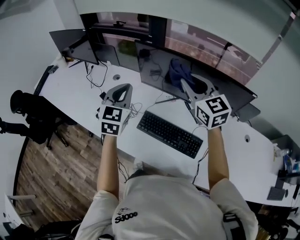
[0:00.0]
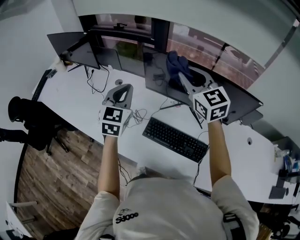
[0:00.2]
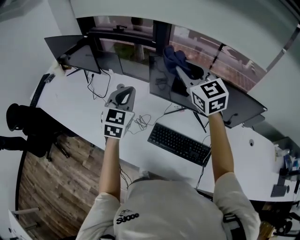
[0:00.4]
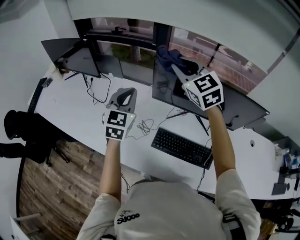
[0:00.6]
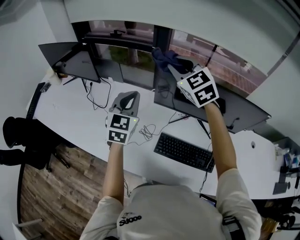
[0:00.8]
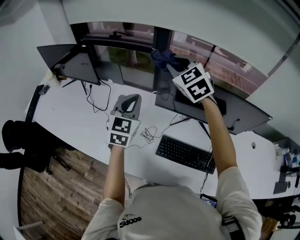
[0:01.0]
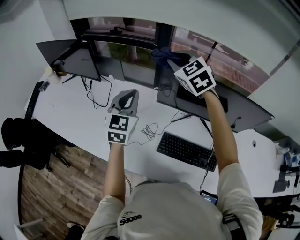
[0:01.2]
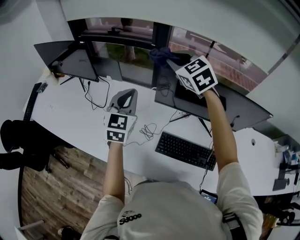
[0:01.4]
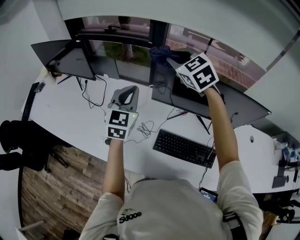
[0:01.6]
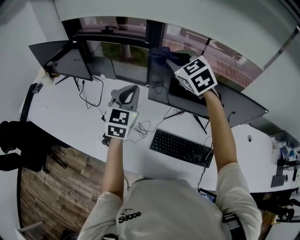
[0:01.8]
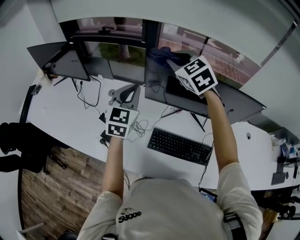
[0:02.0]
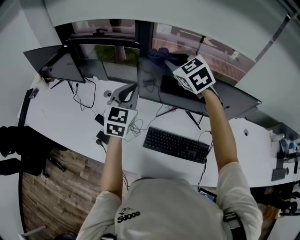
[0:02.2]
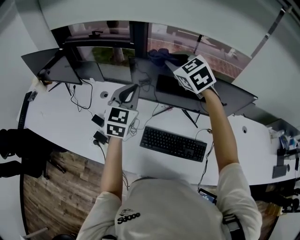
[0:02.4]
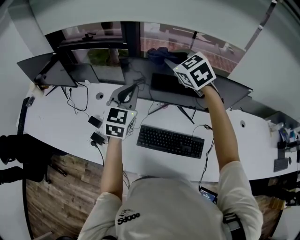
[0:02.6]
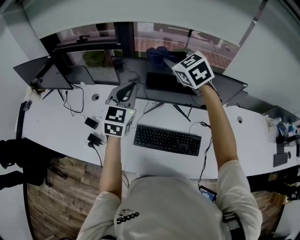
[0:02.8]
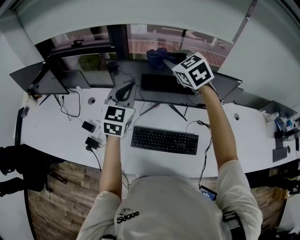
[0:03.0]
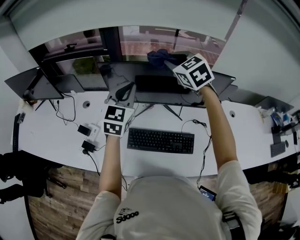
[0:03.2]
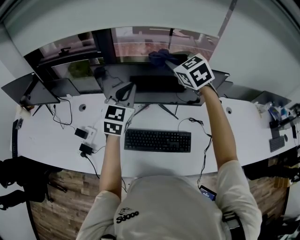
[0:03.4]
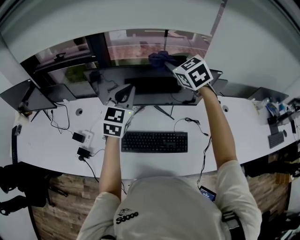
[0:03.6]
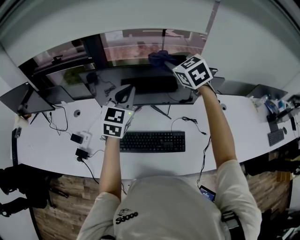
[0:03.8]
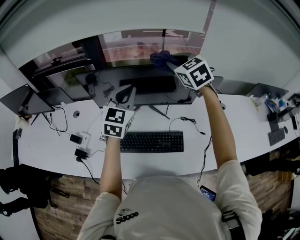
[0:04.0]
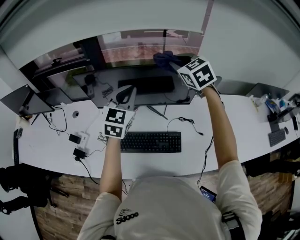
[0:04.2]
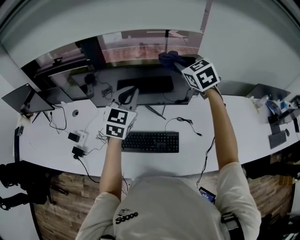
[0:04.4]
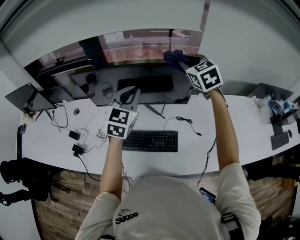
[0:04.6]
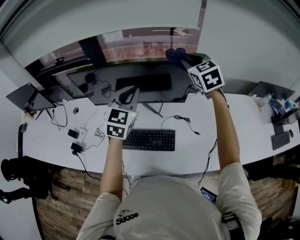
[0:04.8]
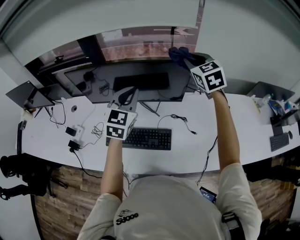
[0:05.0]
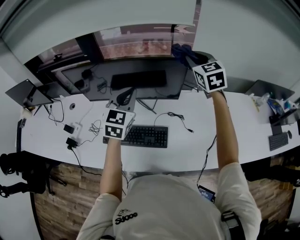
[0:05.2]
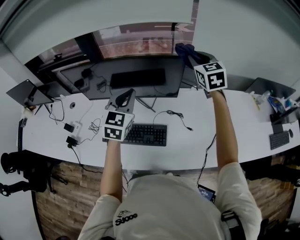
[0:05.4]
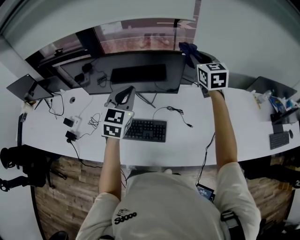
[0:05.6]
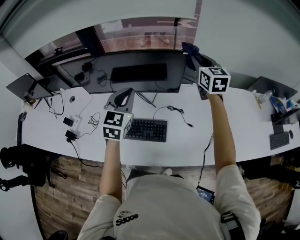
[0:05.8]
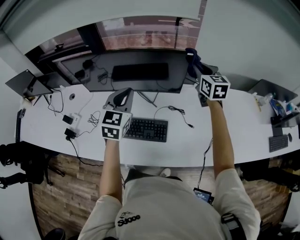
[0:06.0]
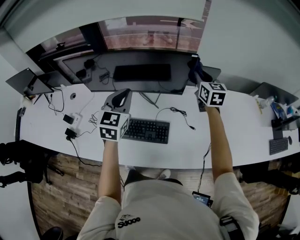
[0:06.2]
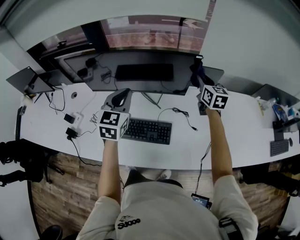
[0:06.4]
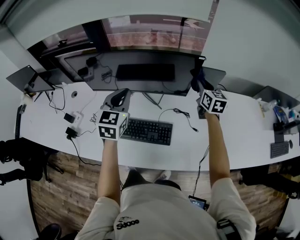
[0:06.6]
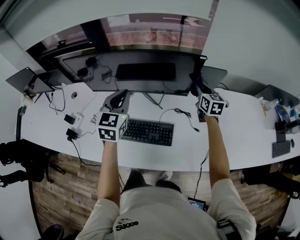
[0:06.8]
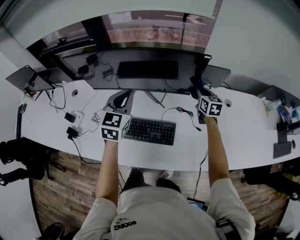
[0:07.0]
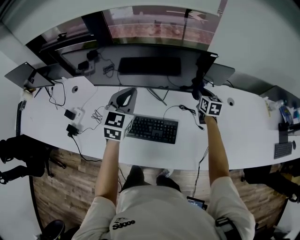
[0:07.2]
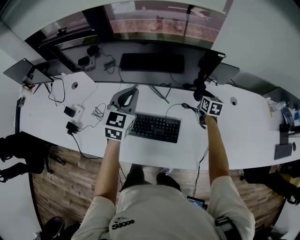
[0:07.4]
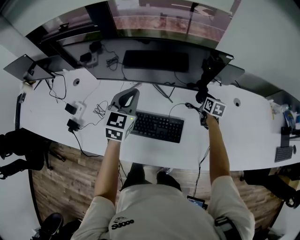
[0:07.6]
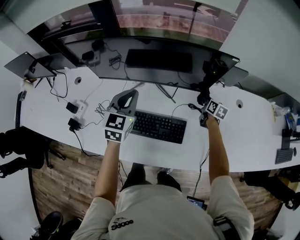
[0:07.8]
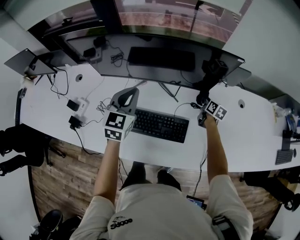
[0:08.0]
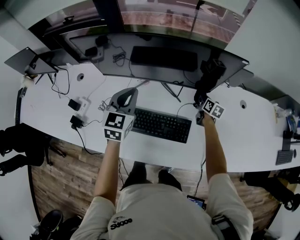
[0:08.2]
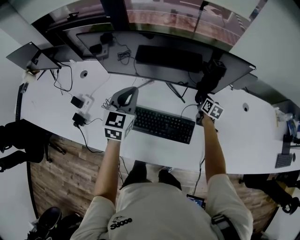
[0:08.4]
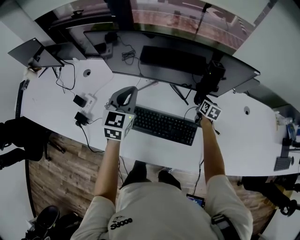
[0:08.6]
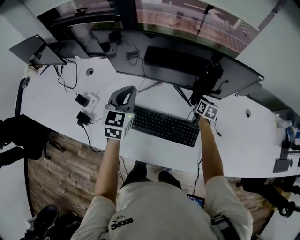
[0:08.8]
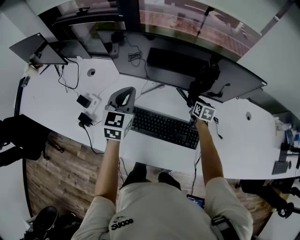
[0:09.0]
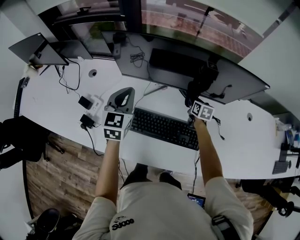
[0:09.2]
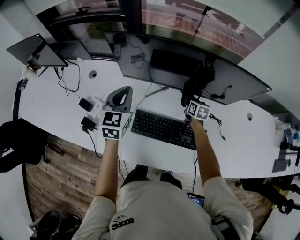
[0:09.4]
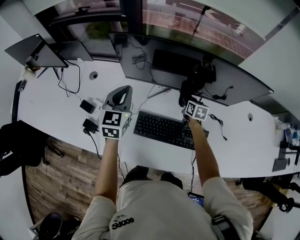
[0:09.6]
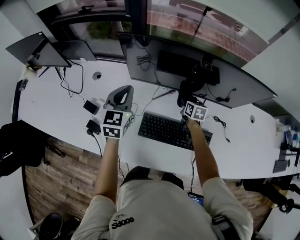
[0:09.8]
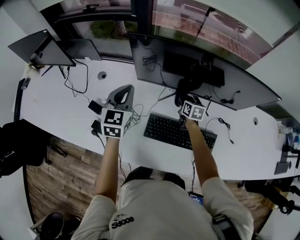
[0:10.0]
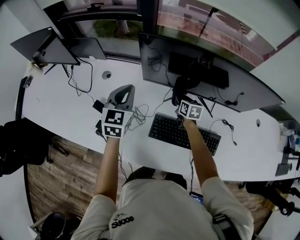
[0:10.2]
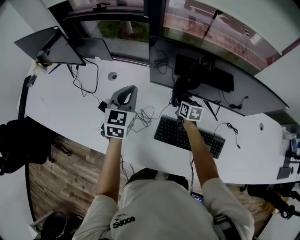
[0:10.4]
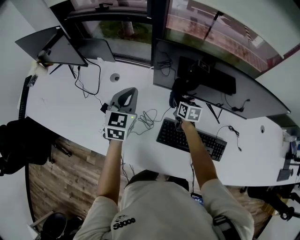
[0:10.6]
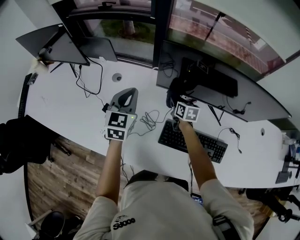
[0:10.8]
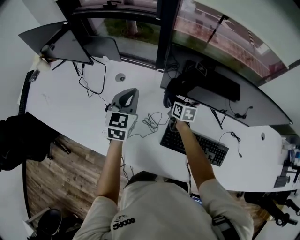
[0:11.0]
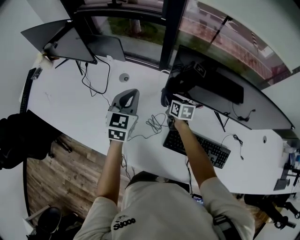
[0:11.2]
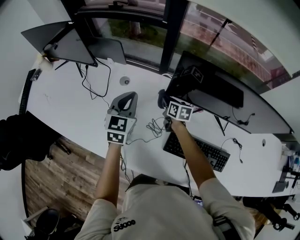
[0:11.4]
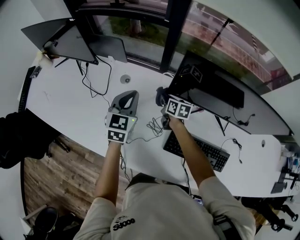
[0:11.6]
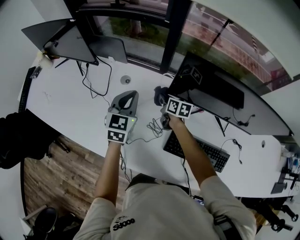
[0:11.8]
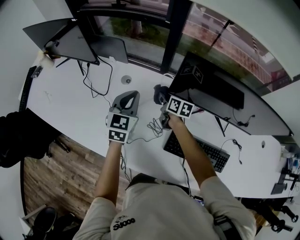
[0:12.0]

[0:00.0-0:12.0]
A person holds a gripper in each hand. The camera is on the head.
0:00.0 to 0:01.6: The right gripper is displaced forward and to the left by some 30 cm, and rotates roughly 30 degrees. The left gripper shifts some 20 cm forward and to the left.
0:01.6 to 0:03.0: Both grippers move to the right, some 20 cm.
0:03.0 to 0:04.4: Both grippers move to the right, some 20 cm.
0:04.4 to 0:06.0: The right gripper goes approximately 20 cm to the right and downward, and turns by approximately 30 degrees; the left gripper moves to the right, about 5 cm.
0:06.0 to 0:07.6: The left gripper moves downward and to the left, about 10 cm, while the right gripper moves downward, some 30 cm, and turns by approximately 30 degrees.
0:07.6 to 0:09.0: Both grippers travel together to the left, approximately 20 cm.
0:09.0 to 0:10.4: The left gripper goes approximately 20 cm to the left, while the right gripper is displaced to the left by about 30 cm.
0:10.4 to 0:12.0: The left gripper goes roughly 10 cm to the left. The right gripper travels to the left and forward by approximately 20 cm, and swivels some 20 degrees.

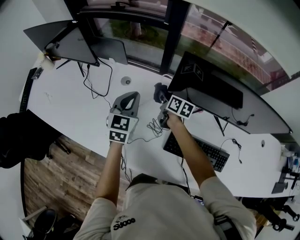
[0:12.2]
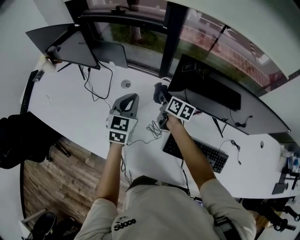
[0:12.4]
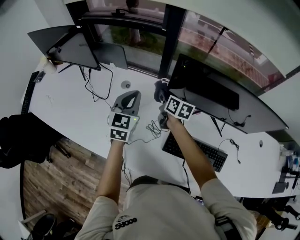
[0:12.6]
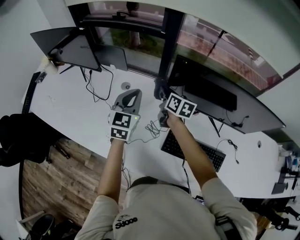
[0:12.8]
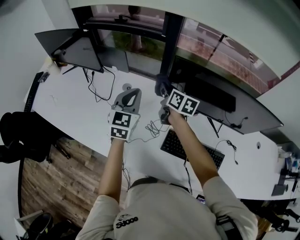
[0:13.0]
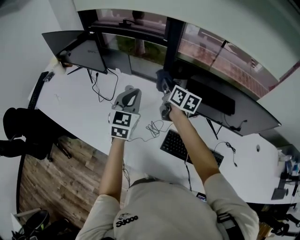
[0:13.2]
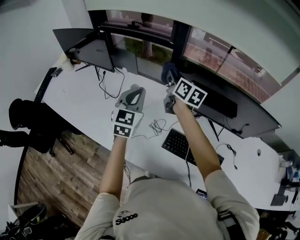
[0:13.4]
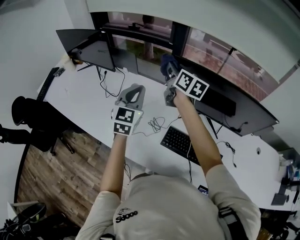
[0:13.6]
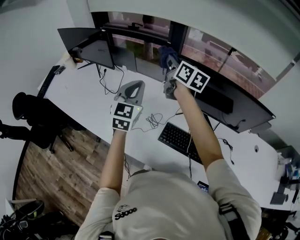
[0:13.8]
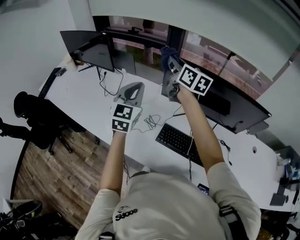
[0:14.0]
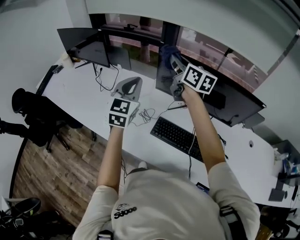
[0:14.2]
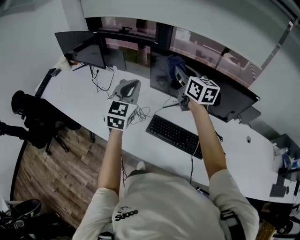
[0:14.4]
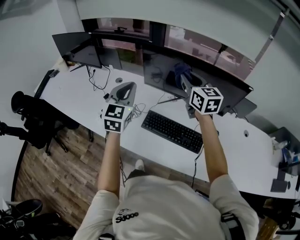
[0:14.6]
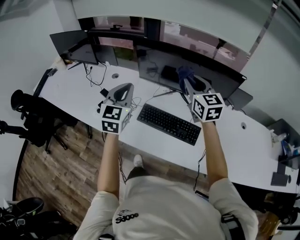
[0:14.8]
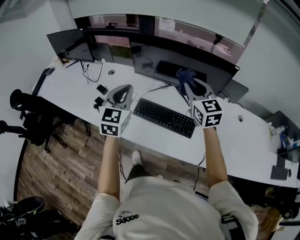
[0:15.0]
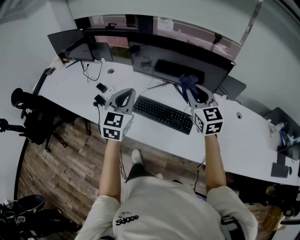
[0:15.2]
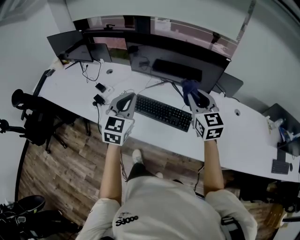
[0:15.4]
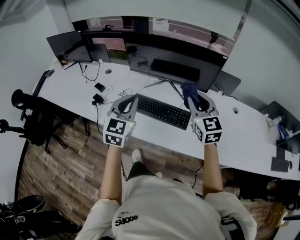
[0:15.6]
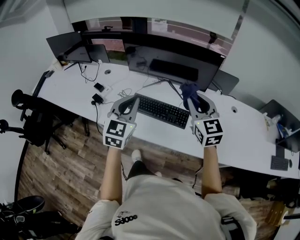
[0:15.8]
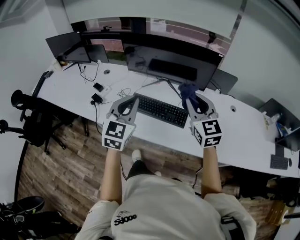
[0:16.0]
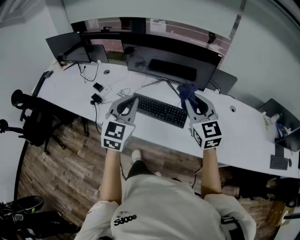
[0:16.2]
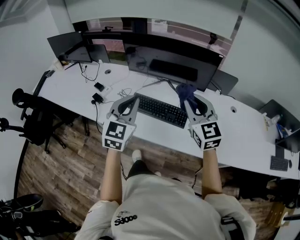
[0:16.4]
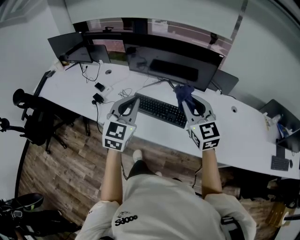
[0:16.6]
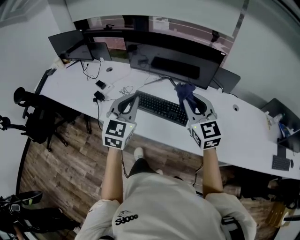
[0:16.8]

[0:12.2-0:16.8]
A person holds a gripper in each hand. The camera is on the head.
0:12.2 to 0:13.8: The left gripper shifts some 20 cm upward and backward, while the right gripper is displaced upward by some 35 cm, and swivels roughly 30 degrees.
0:13.8 to 0:15.2: The left gripper goes some 30 cm backward and to the right; the right gripper shifts some 50 cm backward and to the right, and rotates around the line of its fingers by some 40 degrees, counterclockwise from behind.
0:15.2 to 0:16.8: The right gripper moves backward, approximately 10 cm; the left gripper travels backward and to the right by about 10 cm.

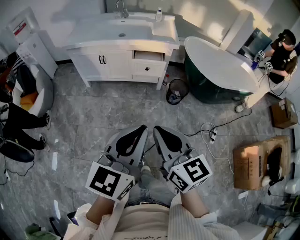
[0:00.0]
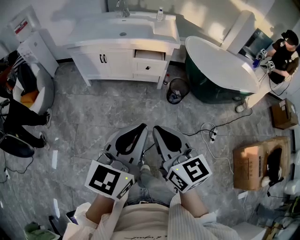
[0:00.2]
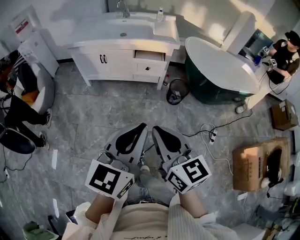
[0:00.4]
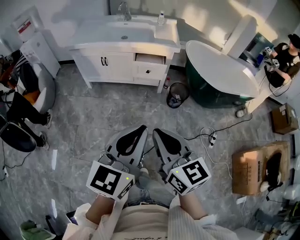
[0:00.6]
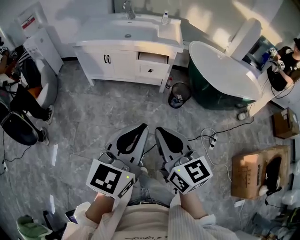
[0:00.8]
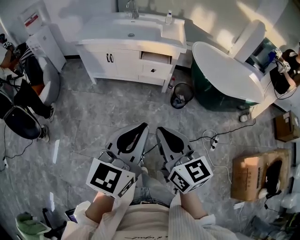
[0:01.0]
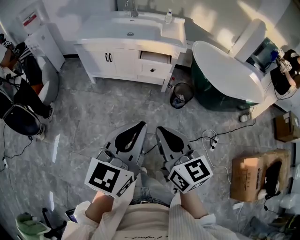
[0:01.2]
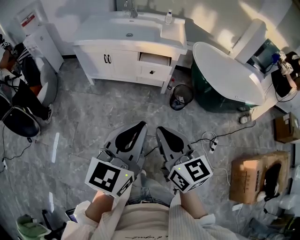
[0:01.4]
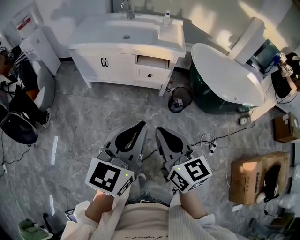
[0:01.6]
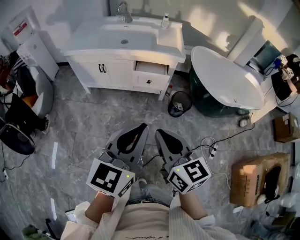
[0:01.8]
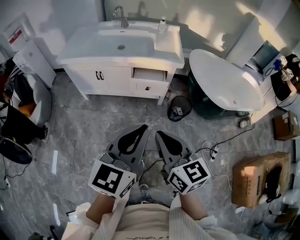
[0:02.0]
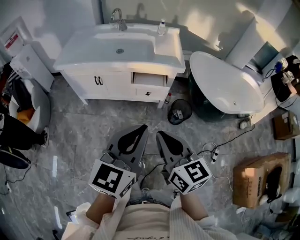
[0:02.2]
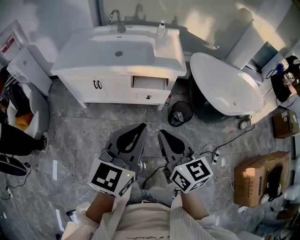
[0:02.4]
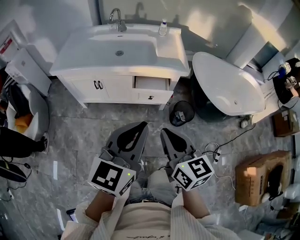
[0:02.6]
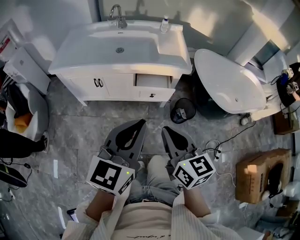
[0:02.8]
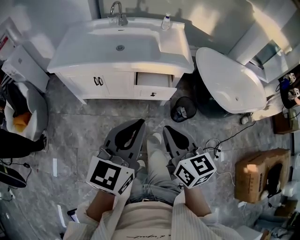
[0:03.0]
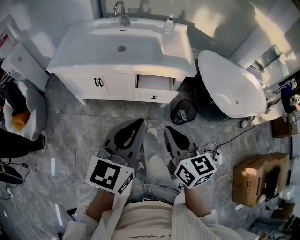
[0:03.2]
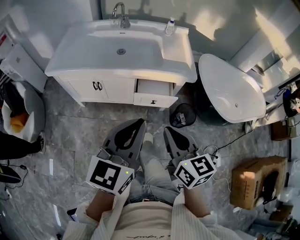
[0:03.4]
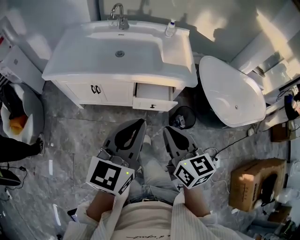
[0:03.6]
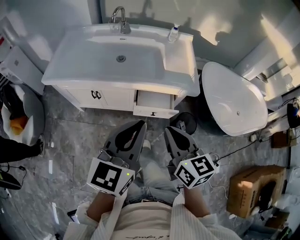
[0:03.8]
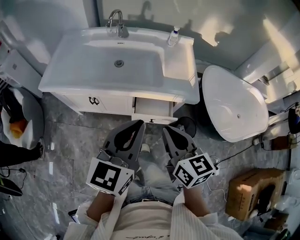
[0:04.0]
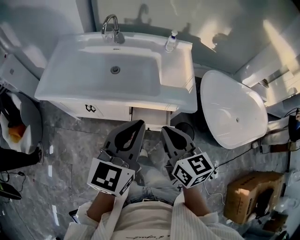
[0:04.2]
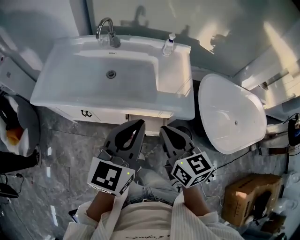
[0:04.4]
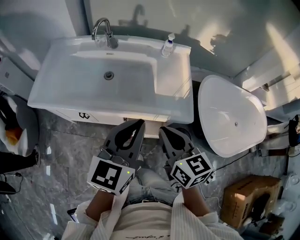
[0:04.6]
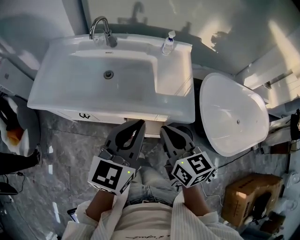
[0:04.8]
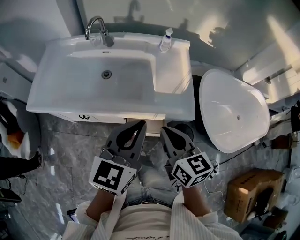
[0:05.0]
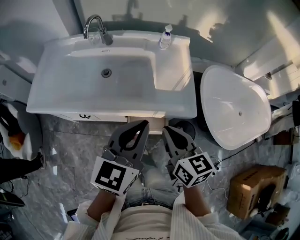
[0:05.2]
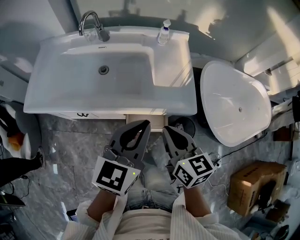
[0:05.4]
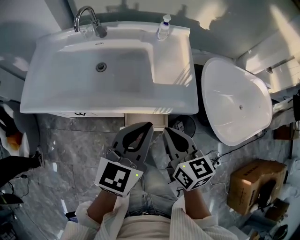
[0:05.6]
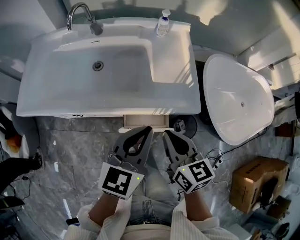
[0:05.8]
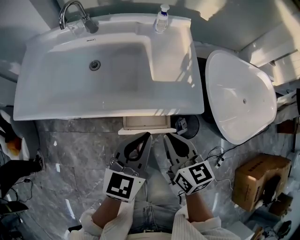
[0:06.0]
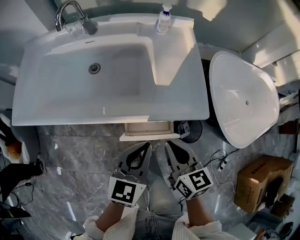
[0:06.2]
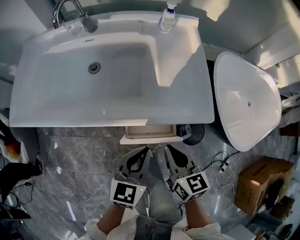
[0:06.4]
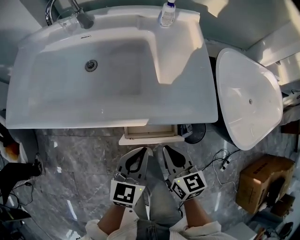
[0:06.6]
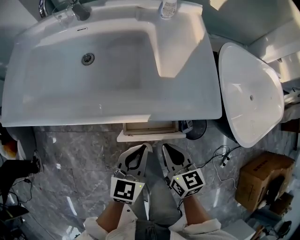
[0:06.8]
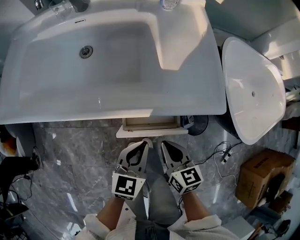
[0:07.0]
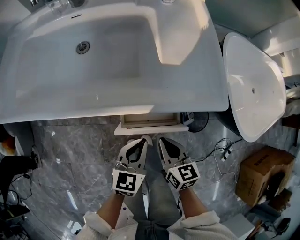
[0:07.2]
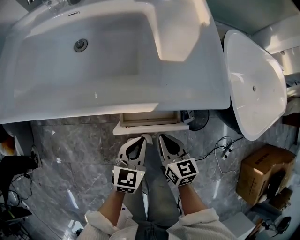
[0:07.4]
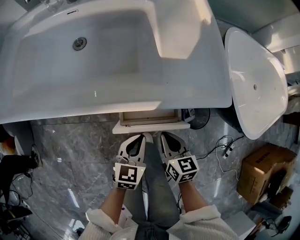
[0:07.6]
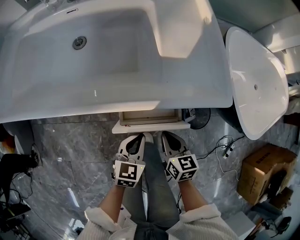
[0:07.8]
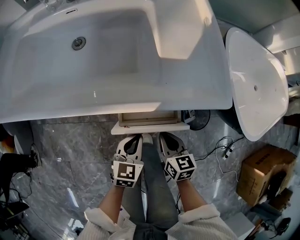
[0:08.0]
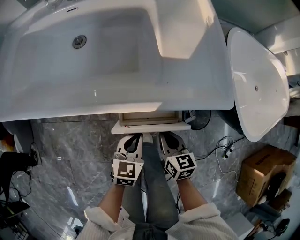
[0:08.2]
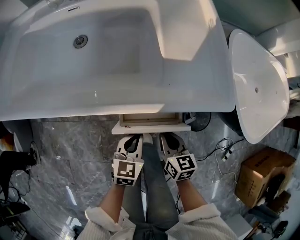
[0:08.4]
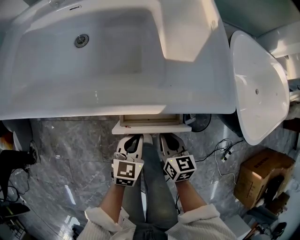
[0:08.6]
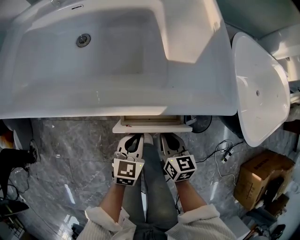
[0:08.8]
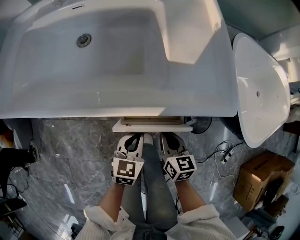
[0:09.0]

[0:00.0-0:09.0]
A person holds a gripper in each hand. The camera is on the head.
0:00.0 to 0:01.6: The two grippers go approximately 10 cm forward.
0:01.6 to 0:03.0: Both grippers move forward, about 20 cm.
0:03.0 to 0:04.4: Both grippers travel together forward, roughly 30 cm.
0:04.4 to 0:06.0: The two grippers go about 15 cm downward.
0:06.0 to 0:07.6: The two grippers go about 25 cm downward.
0:07.6 to 0:09.0: The grippers make only small movements.
